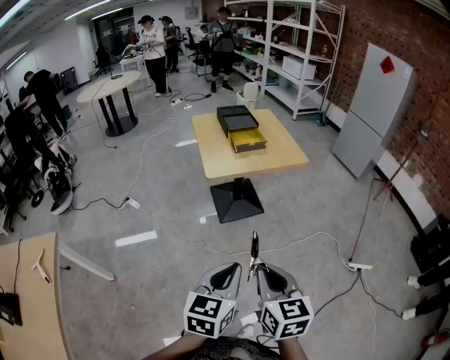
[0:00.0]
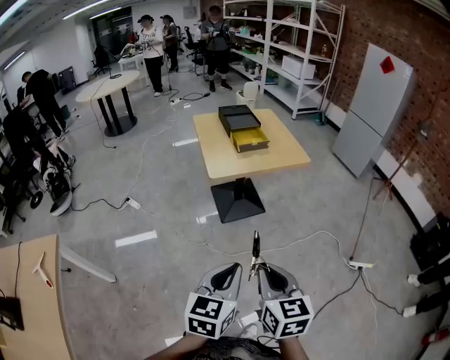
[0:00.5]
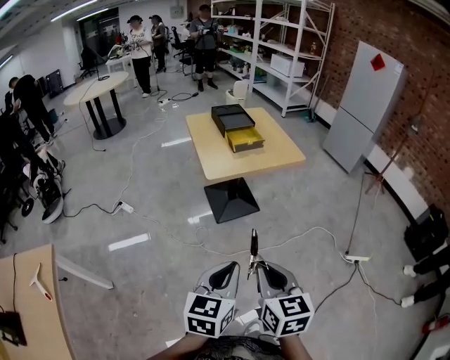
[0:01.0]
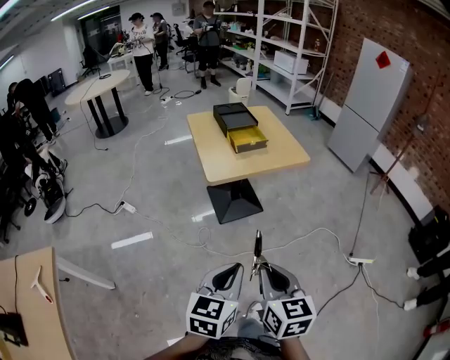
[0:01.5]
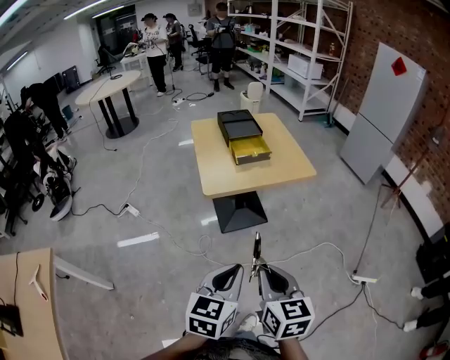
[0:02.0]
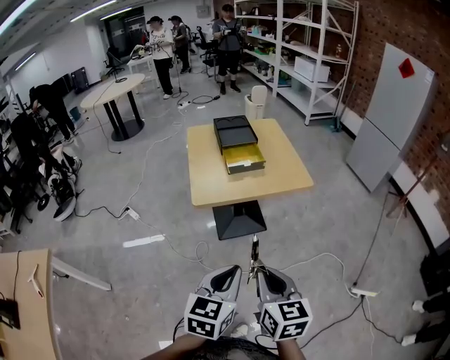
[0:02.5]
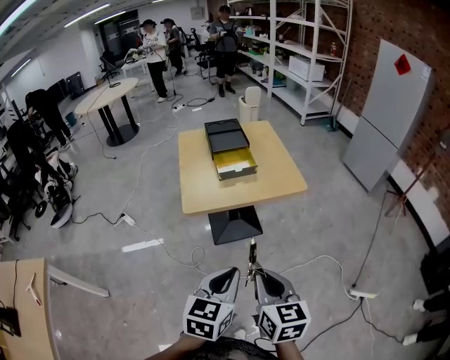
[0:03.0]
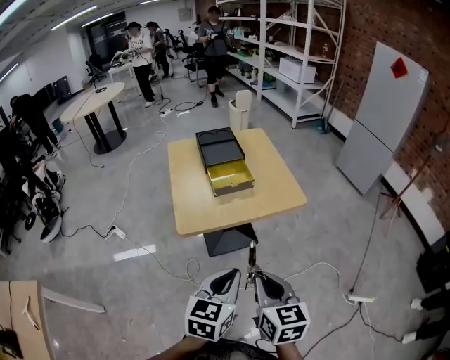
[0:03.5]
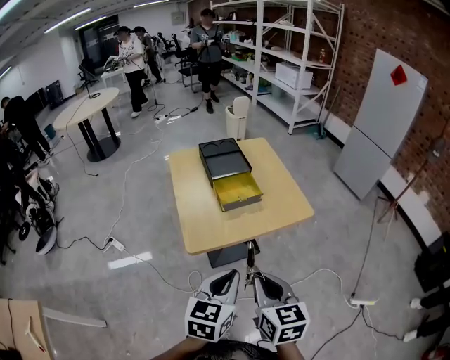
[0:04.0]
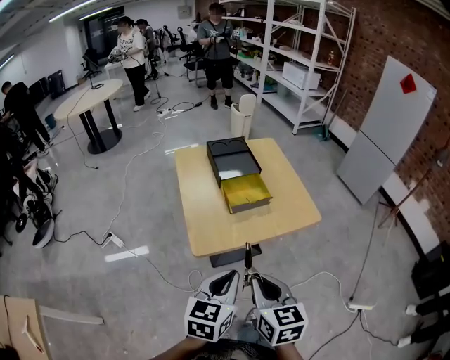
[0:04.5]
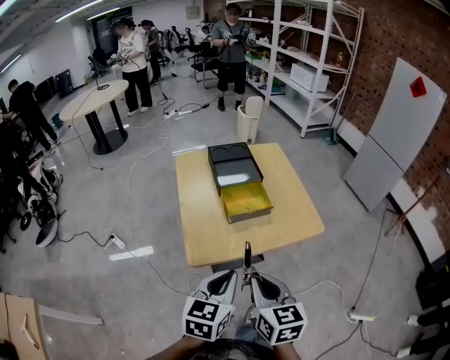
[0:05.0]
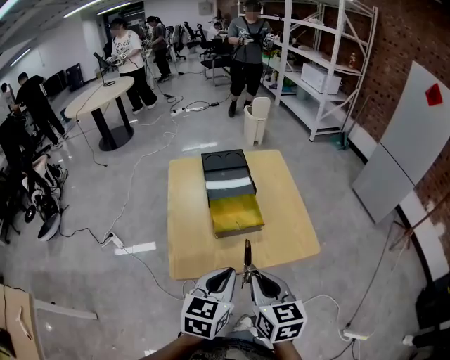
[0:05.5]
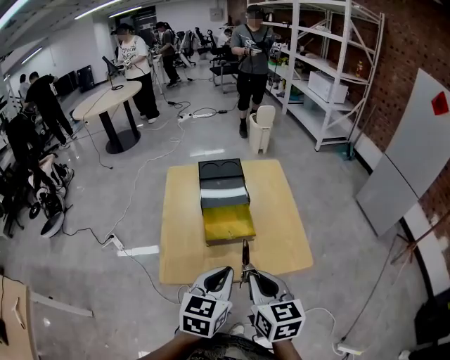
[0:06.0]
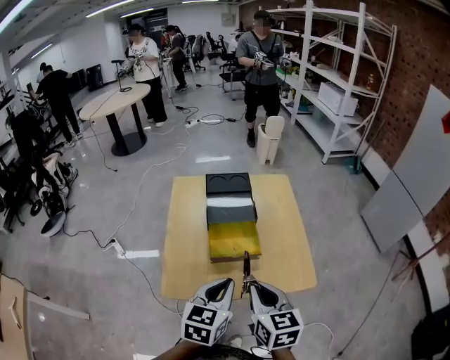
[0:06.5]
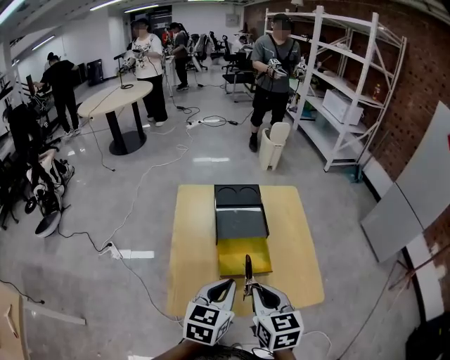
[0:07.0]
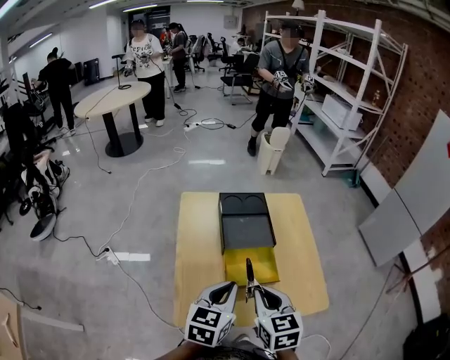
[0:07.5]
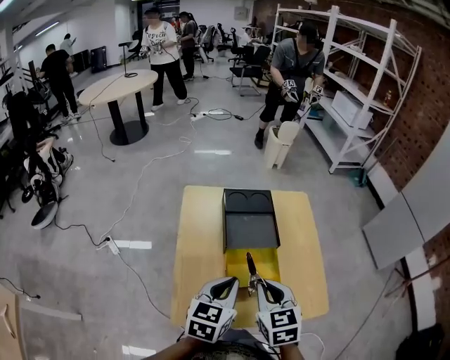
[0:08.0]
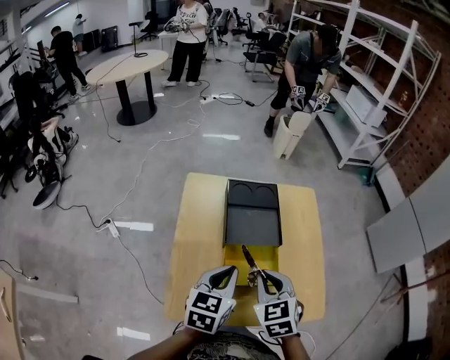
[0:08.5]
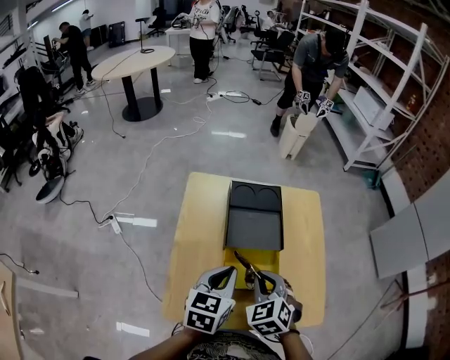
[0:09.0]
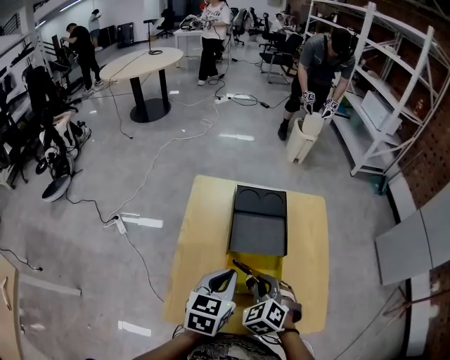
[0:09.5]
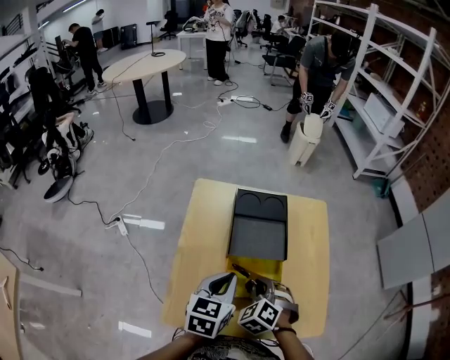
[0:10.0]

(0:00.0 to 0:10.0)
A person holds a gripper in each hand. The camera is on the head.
0:00.0 - 0:02.0: Both grippers travel together forward, roughly 35 cm.
0:02.0 - 0:04.0: Both grippers are carried forward, some 60 cm.
0:04.0 - 0:06.0: The pair of grippers is taken forward and to the right, about 60 cm.
0:06.0 - 0:08.0: Both grippers are carried forward and to the left, about 70 cm. The right gripper changes its angle by some 20 degrees.
0:08.0 - 0:10.0: The right gripper heads forward and downward, covering about 30 cm, and rotates around the line of its fingers by roughly 40 degrees, counterclockwise from behind. Meanwhile the left gripper goes approximately 25 cm forward.

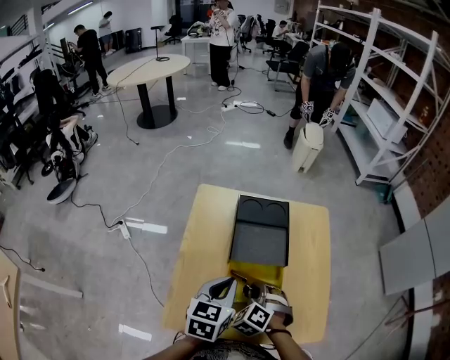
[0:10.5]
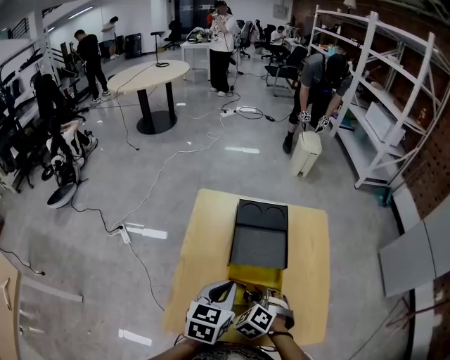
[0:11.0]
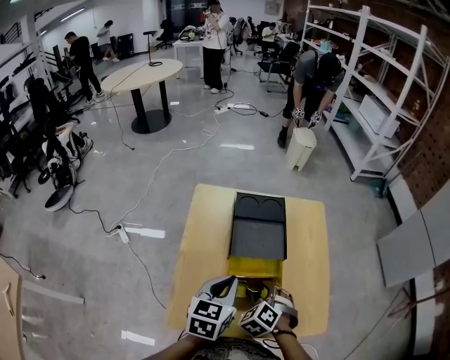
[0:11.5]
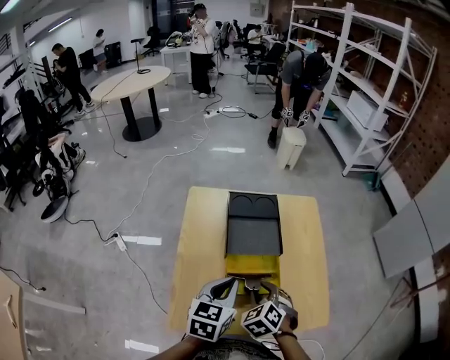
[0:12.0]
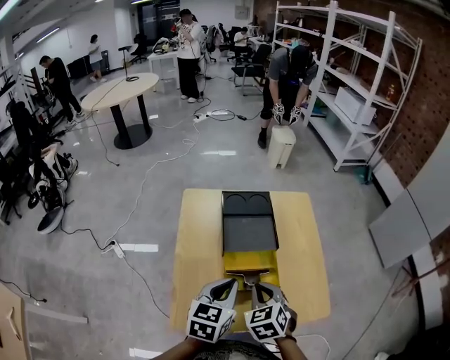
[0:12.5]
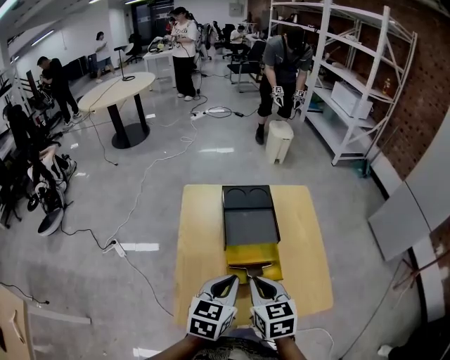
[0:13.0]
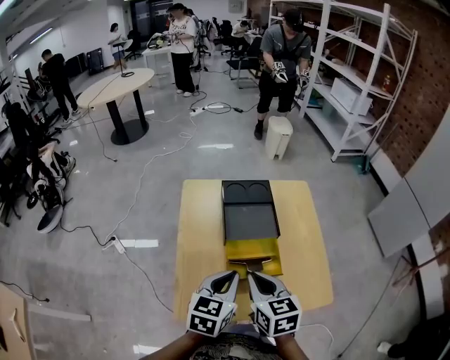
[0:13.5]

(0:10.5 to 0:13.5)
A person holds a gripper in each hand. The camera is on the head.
0:10.5 - 0:12.0: Both grippers move backward, roughly 15 cm. The right gripper opens its fingers.
0:12.0 - 0:13.5: The right gripper goes some 15 cm backward and upward, rotates around the line of its fingers by roughly 40 degrees, clockwise from behind, and closes its fingers. The left gripper is displaced backward by about 15 cm.

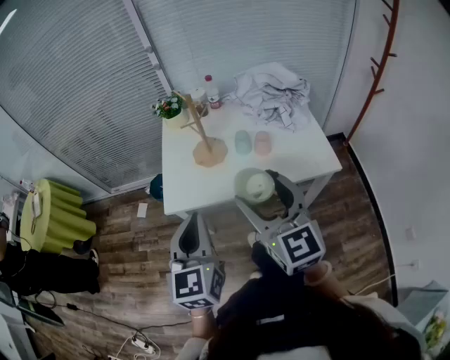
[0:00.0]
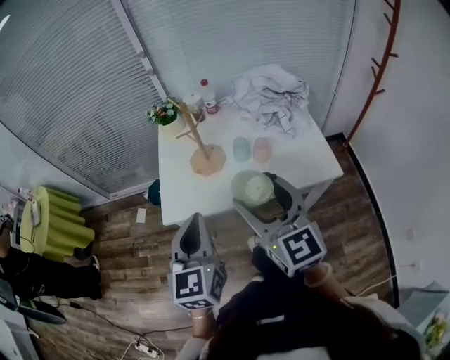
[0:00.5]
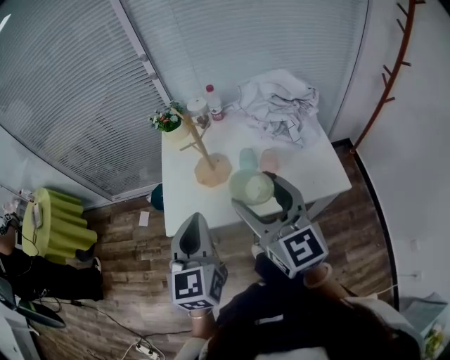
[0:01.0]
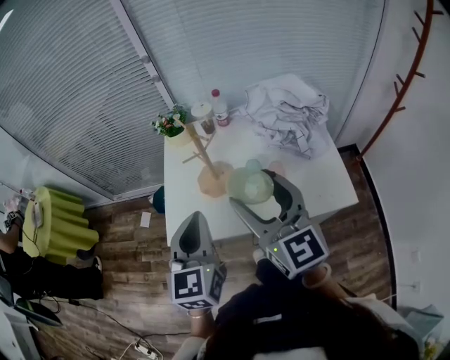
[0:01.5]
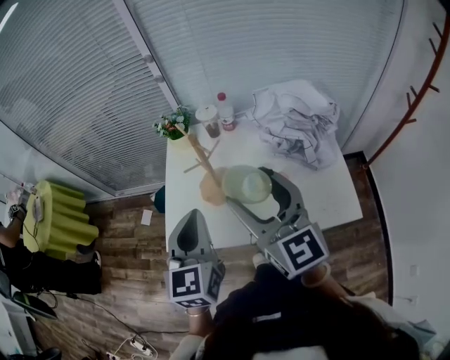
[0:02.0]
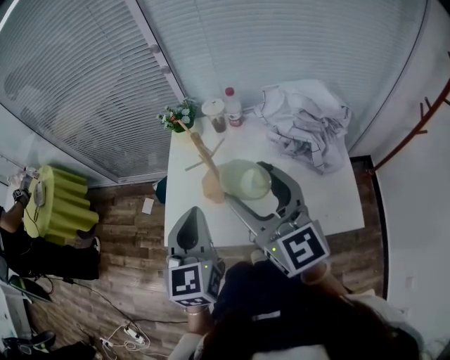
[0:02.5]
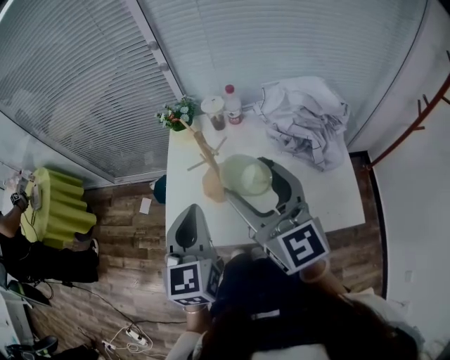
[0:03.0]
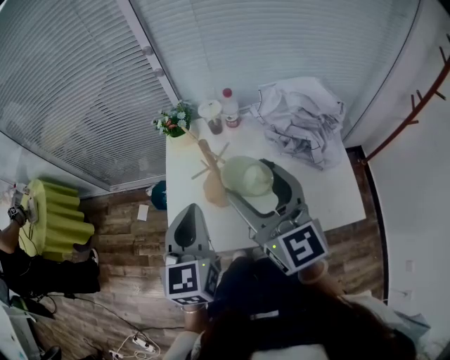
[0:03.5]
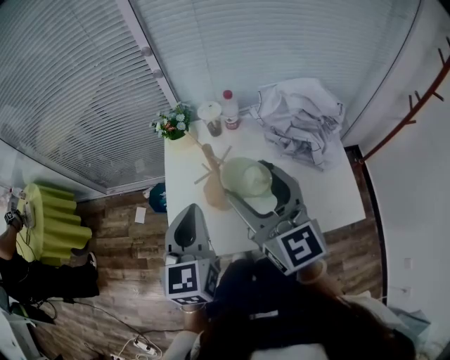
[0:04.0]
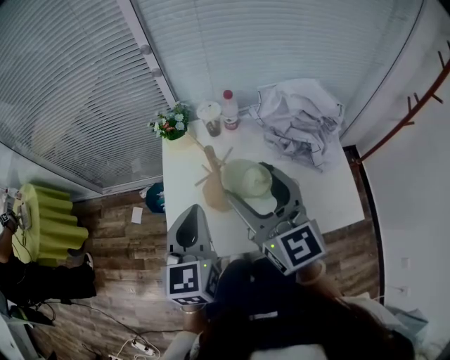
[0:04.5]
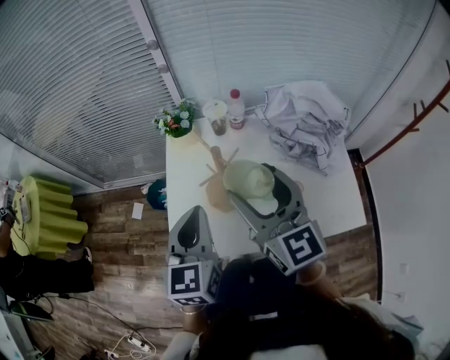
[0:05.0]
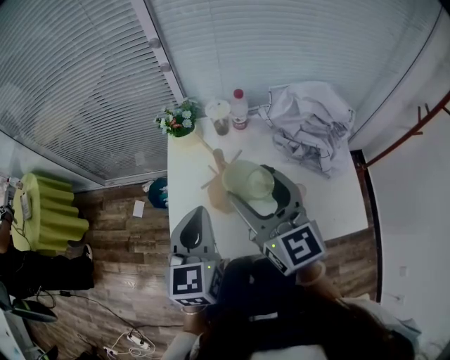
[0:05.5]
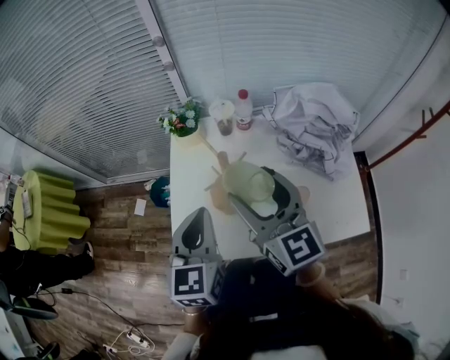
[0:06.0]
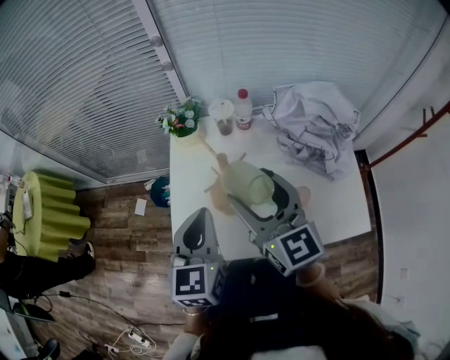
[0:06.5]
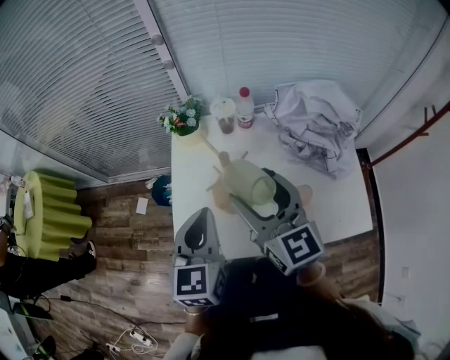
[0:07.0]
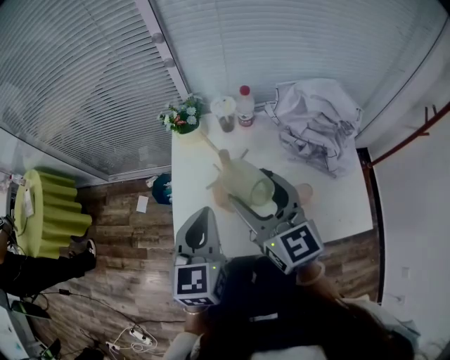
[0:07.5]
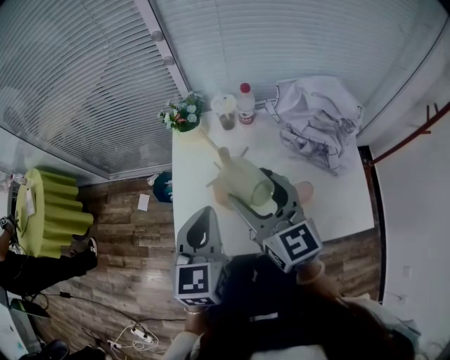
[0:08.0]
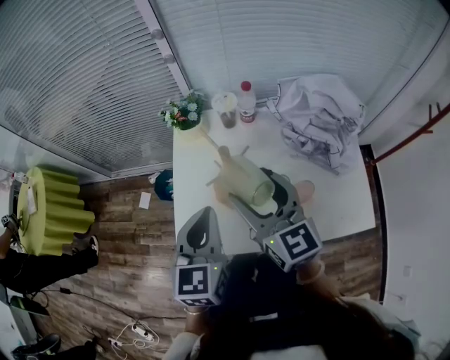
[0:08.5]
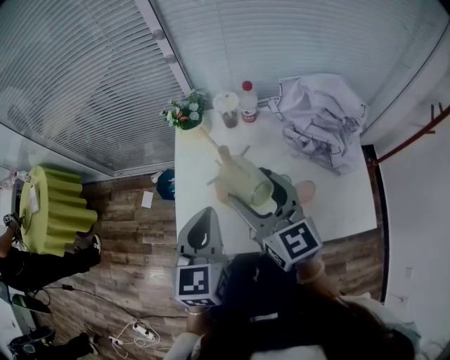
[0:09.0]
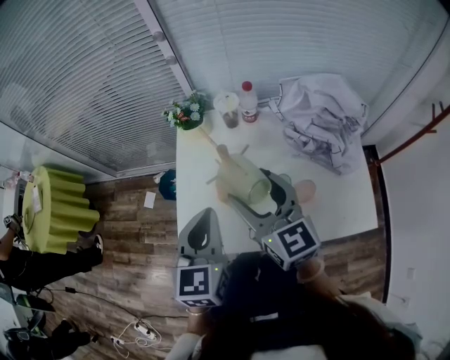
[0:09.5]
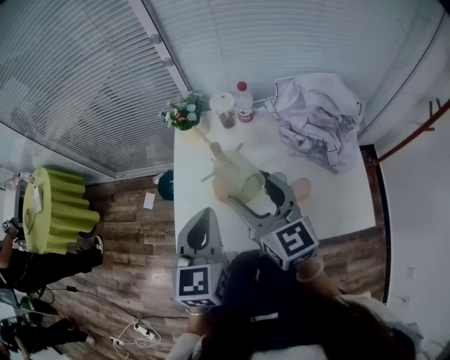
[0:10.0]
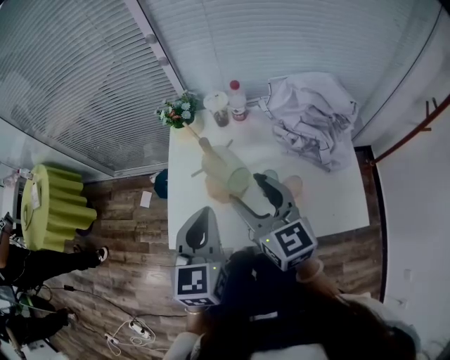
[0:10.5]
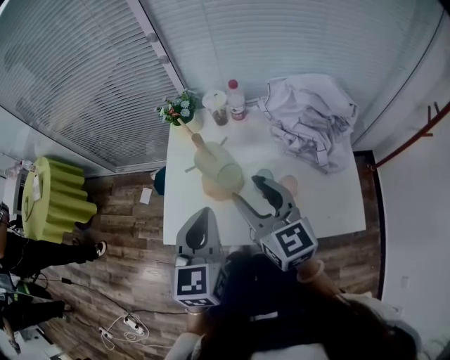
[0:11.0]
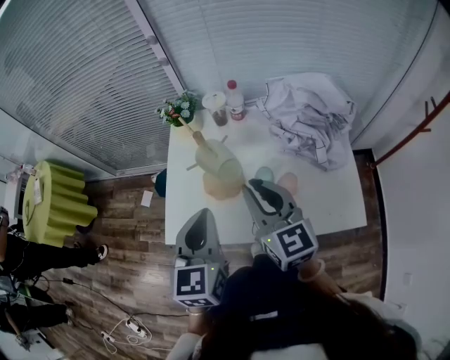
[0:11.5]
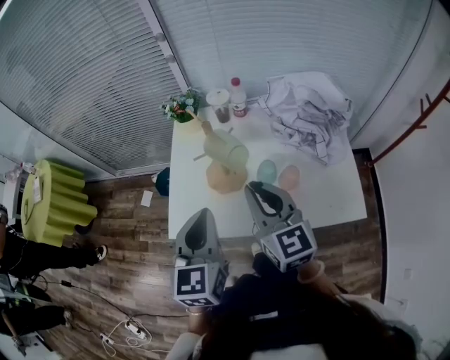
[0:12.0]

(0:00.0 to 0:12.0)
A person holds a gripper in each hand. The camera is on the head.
0:00.0 - 0:02.0: The two grippers go approximately 20 cm forward.
0:02.0 - 0:04.0: Both grippers move forward, roughly 5 cm.
0:04.0 - 0:06.0: The right gripper ends up about 5 cm from where it was.
0:06.0 - 0:10.0: The grippers make only small movements.
0:10.0 - 0:12.0: Both grippers move backward, about 5 cm. The right gripper closes up.

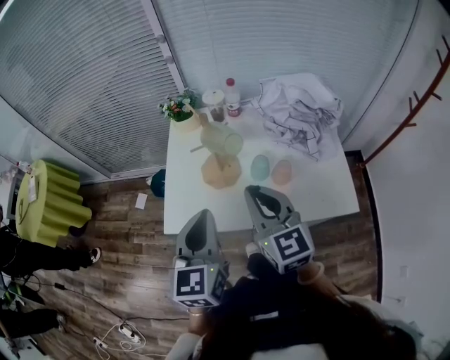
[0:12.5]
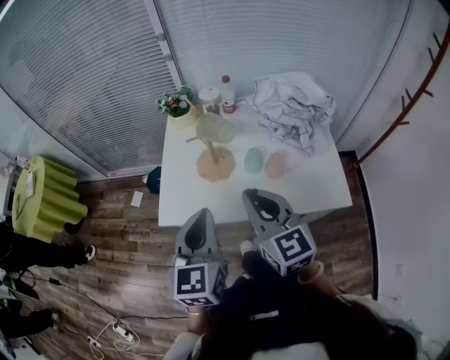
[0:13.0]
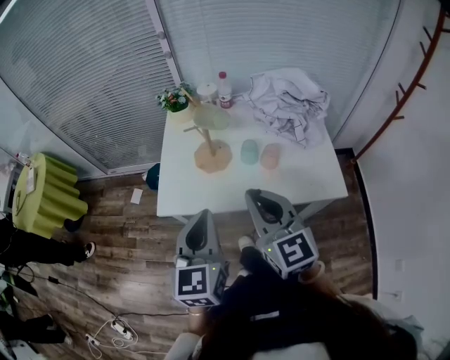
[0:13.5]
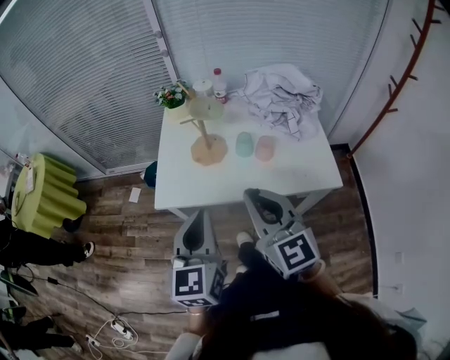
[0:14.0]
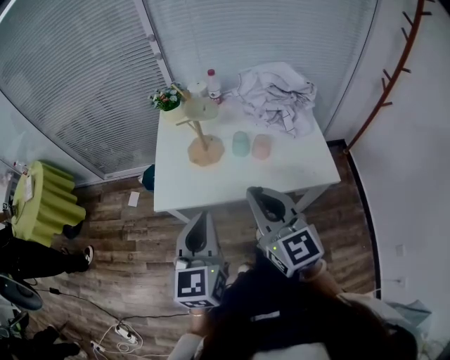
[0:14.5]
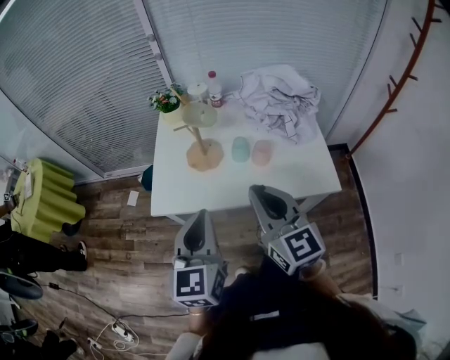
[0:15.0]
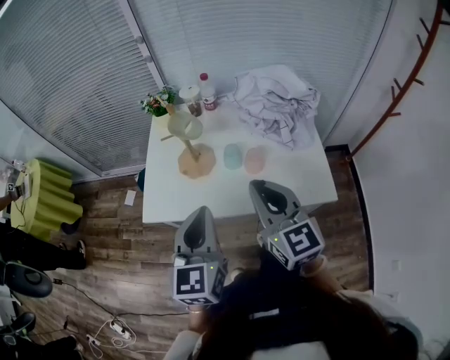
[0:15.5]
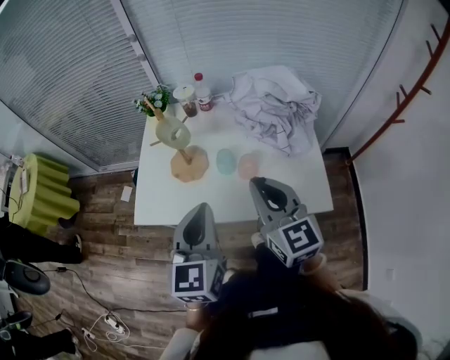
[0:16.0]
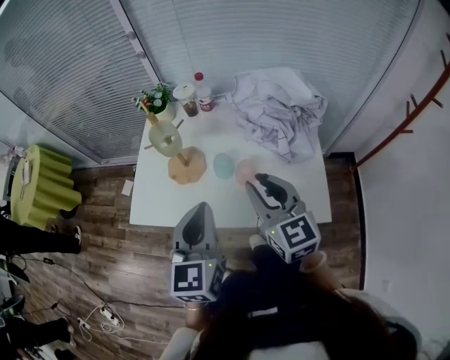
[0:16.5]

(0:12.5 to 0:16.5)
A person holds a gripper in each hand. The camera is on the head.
0:12.5 - 0:14.5: Both grippers move backward, about 15 cm.
0:14.5 - 0:16.5: The left gripper goes roughly 20 cm to the right and forward. The right gripper goes some 20 cm forward and to the right.
